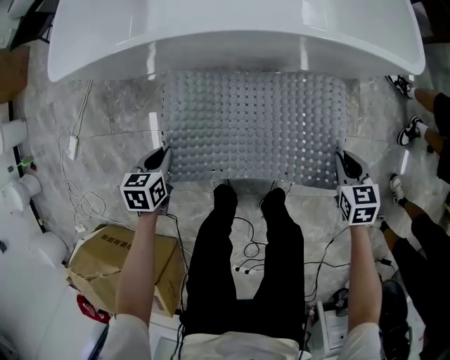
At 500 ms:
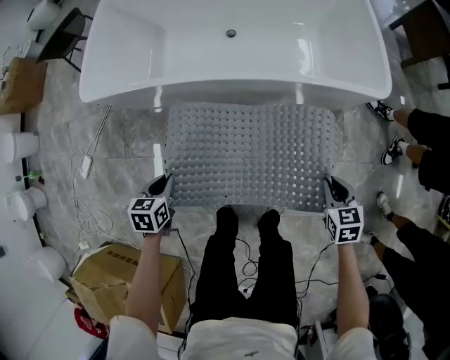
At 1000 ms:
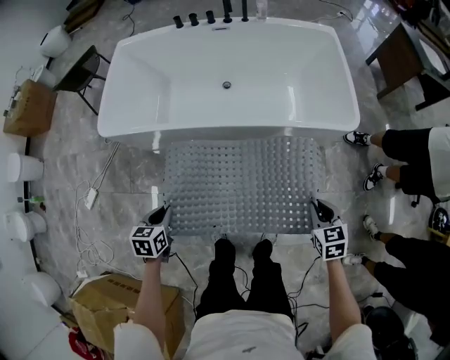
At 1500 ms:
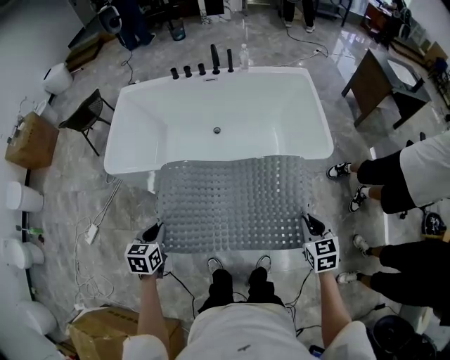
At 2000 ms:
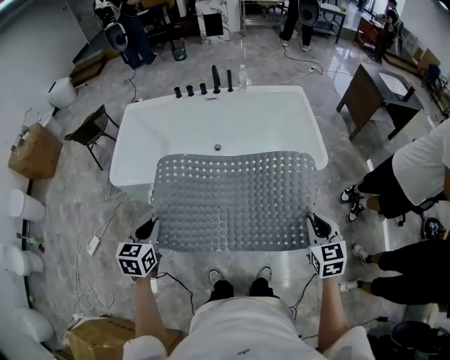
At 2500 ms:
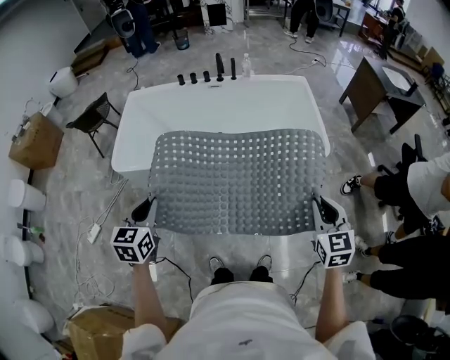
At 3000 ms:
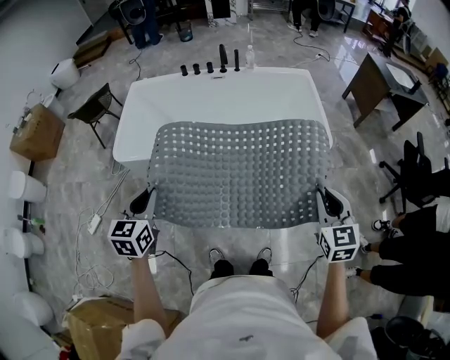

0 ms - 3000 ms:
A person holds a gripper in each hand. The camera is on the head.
0 ms - 1500 ms: The two grippers go roughly 35 cm upward.
1500 ms - 3000 ms: Both grippers travel together upward, some 15 cm.

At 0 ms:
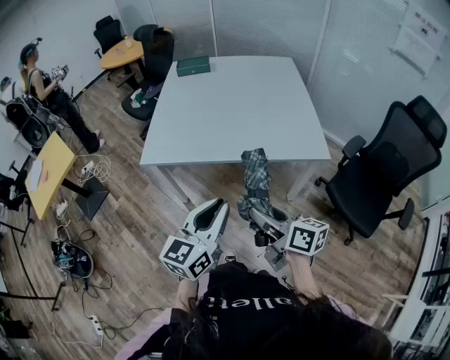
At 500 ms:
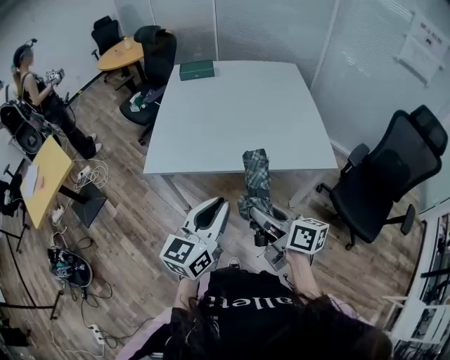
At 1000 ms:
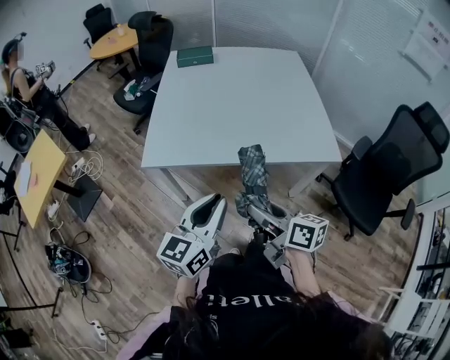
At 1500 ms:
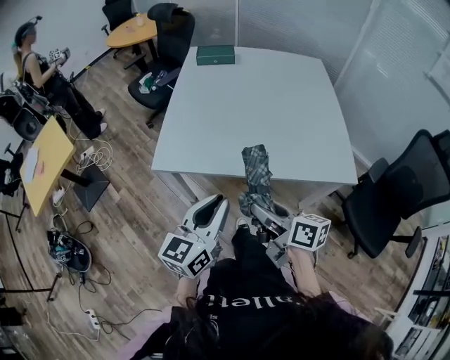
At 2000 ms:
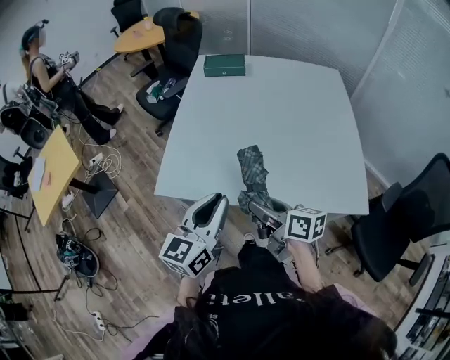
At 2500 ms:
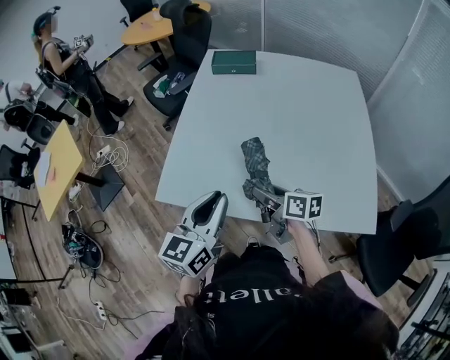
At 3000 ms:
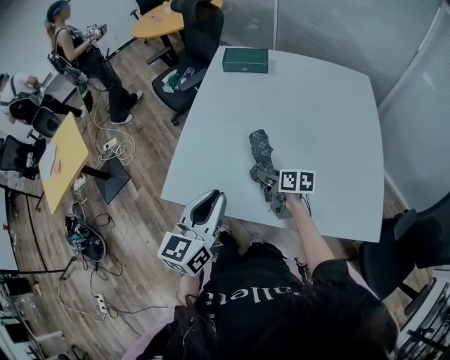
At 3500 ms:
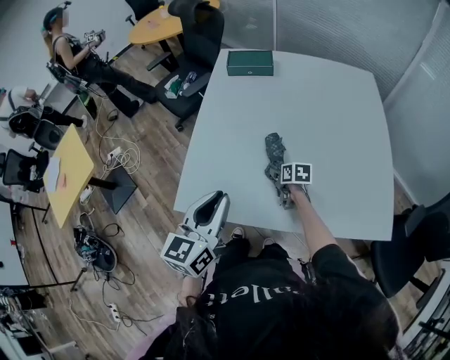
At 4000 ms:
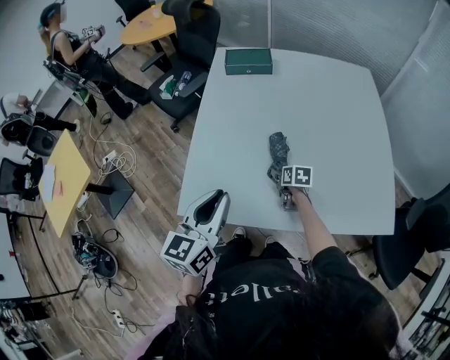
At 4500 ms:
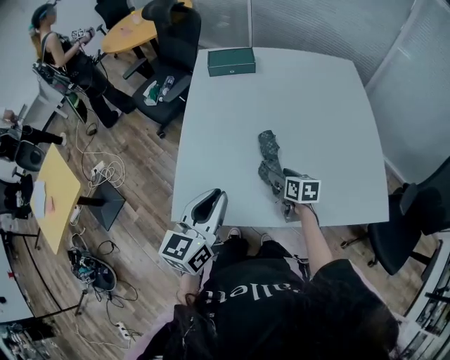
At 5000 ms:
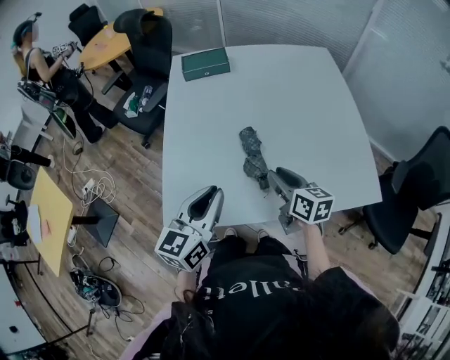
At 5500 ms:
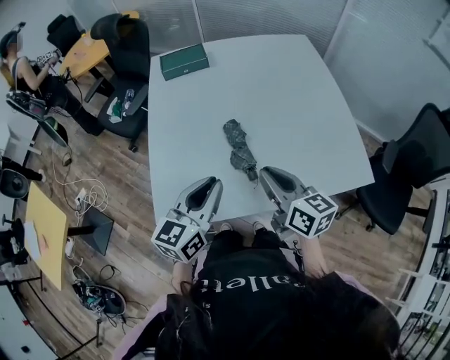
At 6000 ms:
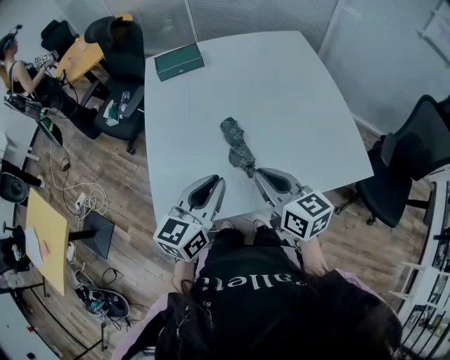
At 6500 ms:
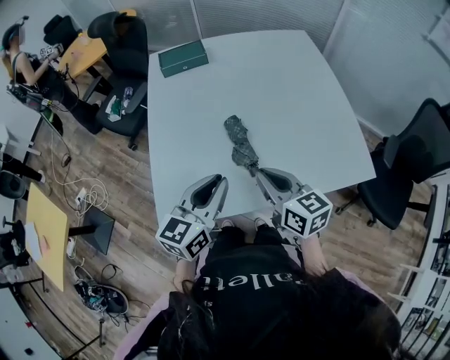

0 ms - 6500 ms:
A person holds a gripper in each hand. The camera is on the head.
0 ms - 2000 ms: Both grippers travel together forward, roughly 30 cm.
2000 ms - 4500 ms: The left gripper shifts approximately 15 cm forward and to the left, while the right gripper is displaced forward and downward by approximately 25 cm, and swivels some 30 degrees.
4500 ms - 6500 ms: The left gripper moves to the right, roughly 5 cm; the right gripper goes roughly 20 cm upward and backward, changes its angle by some 20 degrees, and closes its fingers.

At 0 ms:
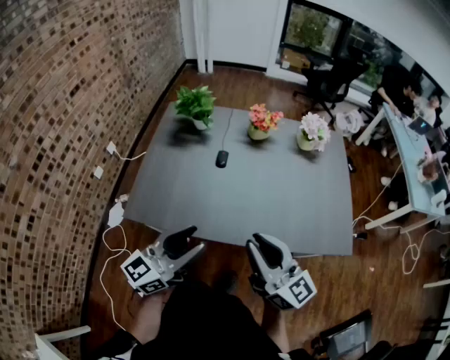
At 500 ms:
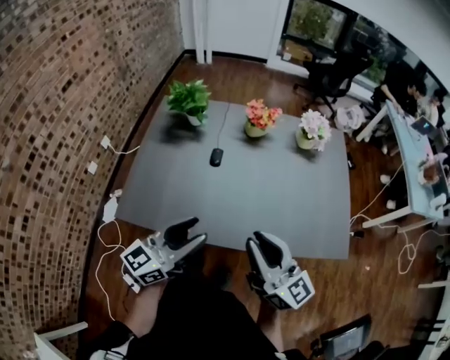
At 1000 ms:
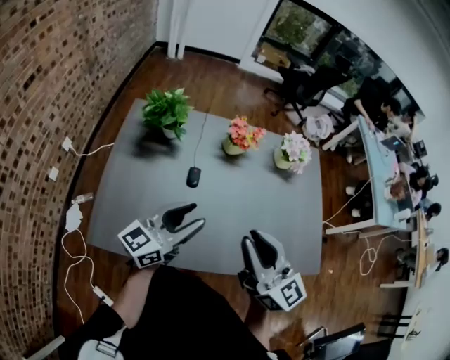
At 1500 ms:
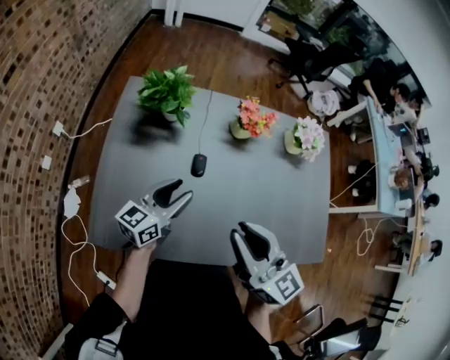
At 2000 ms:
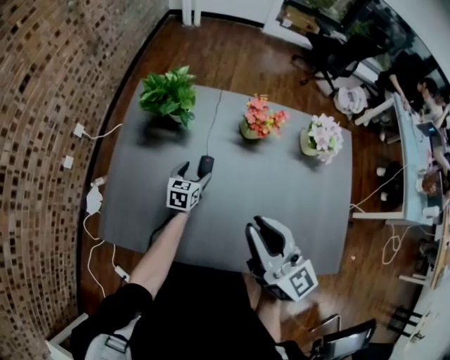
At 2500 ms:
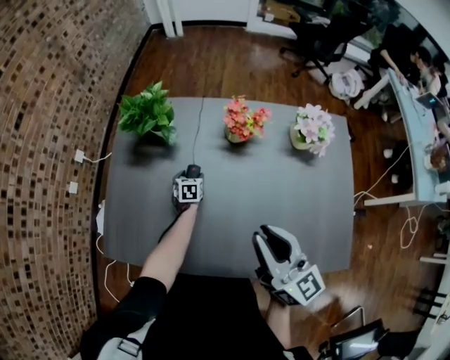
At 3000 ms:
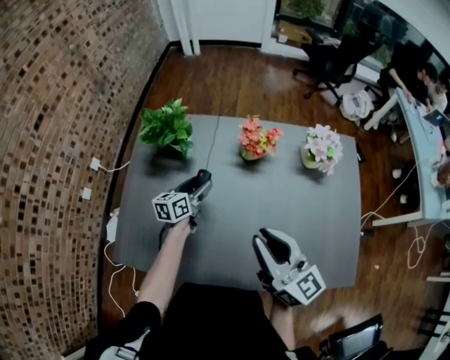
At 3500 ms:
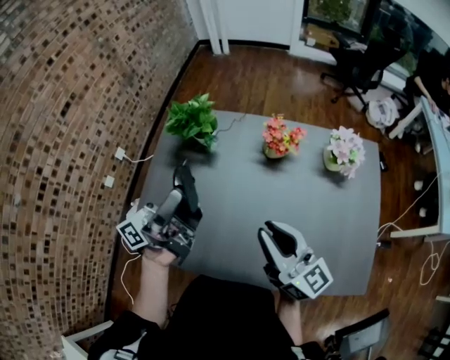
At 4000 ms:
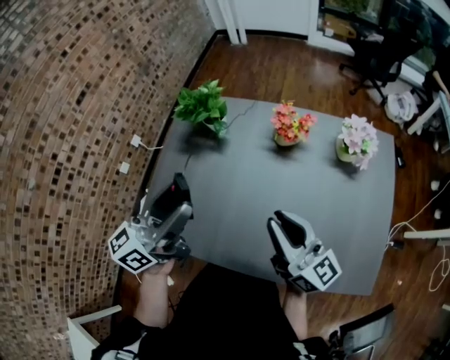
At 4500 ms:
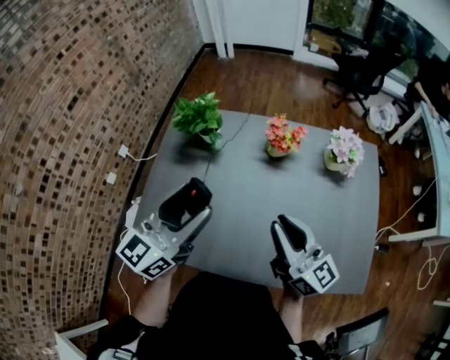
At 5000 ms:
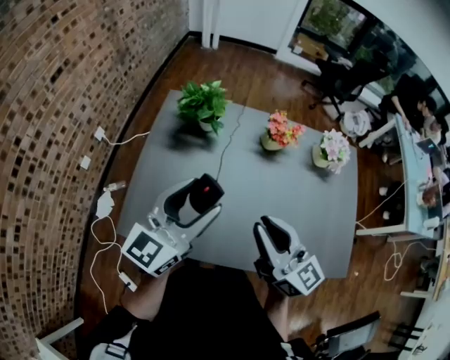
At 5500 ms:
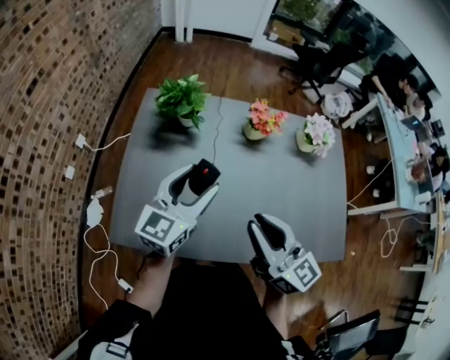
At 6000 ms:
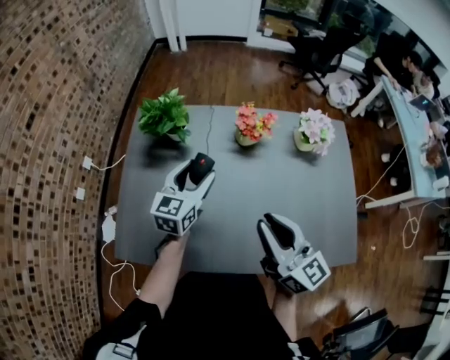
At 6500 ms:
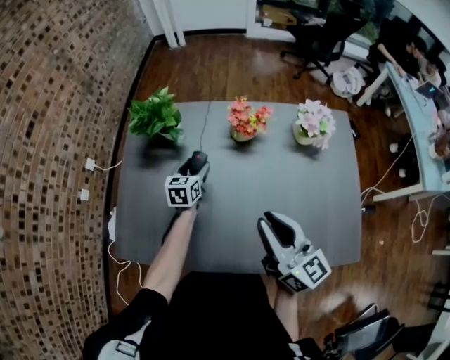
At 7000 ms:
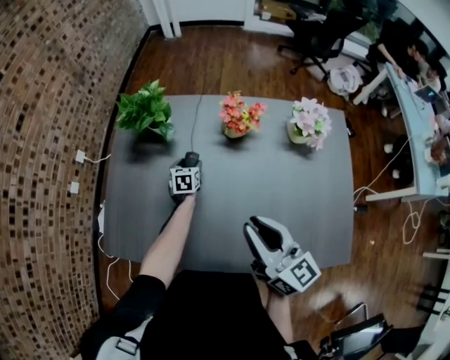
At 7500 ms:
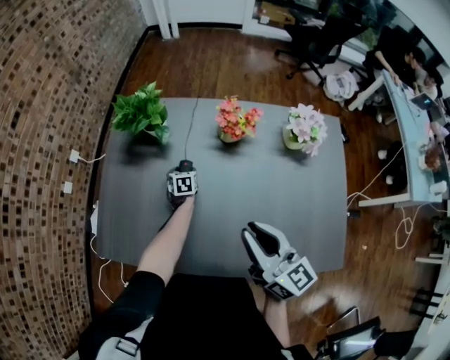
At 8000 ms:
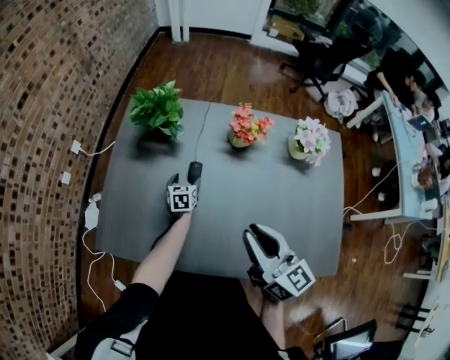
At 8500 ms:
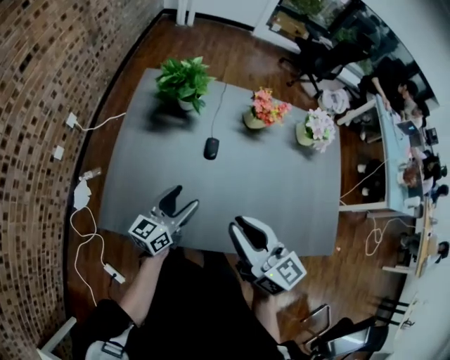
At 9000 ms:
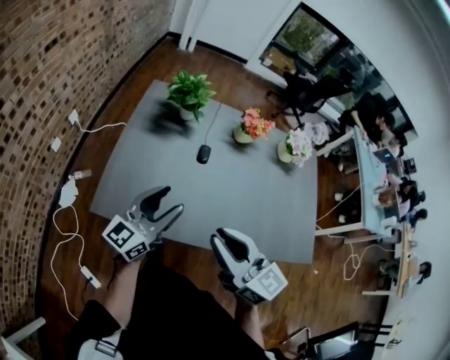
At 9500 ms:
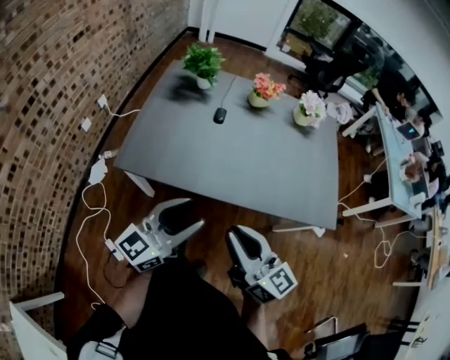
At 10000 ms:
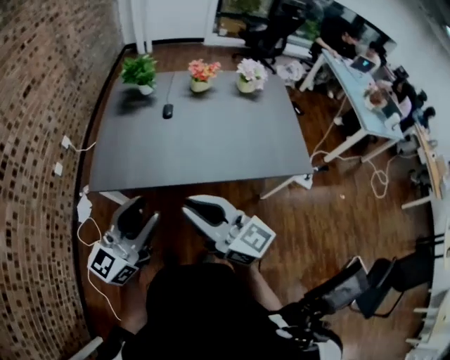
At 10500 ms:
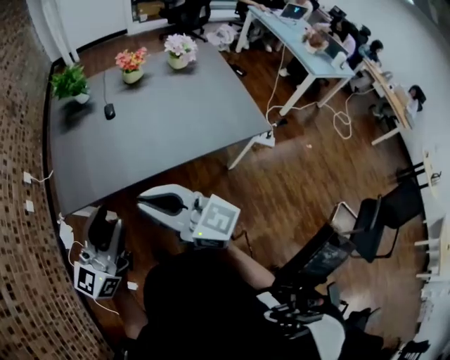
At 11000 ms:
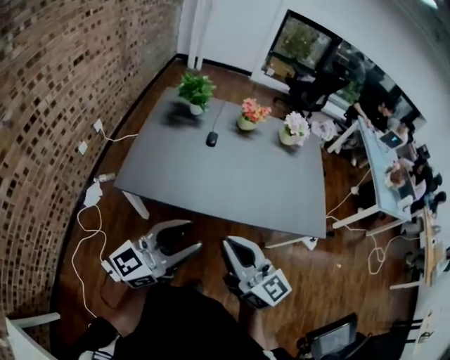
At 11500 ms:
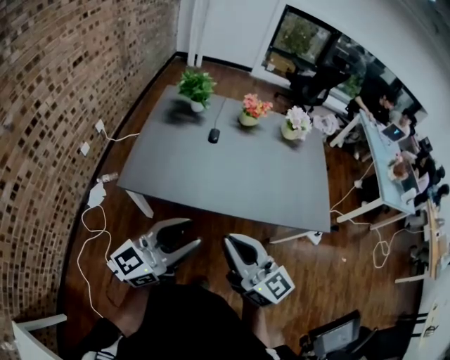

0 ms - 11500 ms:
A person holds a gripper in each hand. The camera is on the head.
0 ms - 2000 ms: The left gripper goes roughly 60 cm forward and downward, angles its fingers downward, by about 40 degrees, and opens its fingers. Meanwhile the right gripper goes about 30 cm forward.
2000 ms - 4000 ms: The left gripper travels upward and backward by about 40 cm, and tips its fingers upward by some 40 degrees, while the right gripper heads to the right, covering about 5 cm.
4000 ms - 6000 ms: The left gripper is displaced downward and forward by some 20 cm, and rotates about 30 degrees, while the right gripper moves approximately 15 cm to the left and comes back.
6000 ms - 7500 ms: The right gripper is displaced downward by some 5 cm. The left gripper is displaced downward by about 35 cm, and points its fingers about 40 degrees further downward.
7500 ms - 9500 ms: The pair of grippers is taken backward, roughly 50 cm. The left gripper heads upward, covering approximately 40 cm, and angles its fingers upward, by about 60 degrees.
9500 ms - 11500 ms: The right gripper moves about 5 cm. Meanwhile the left gripper goes some 5 cm upward.

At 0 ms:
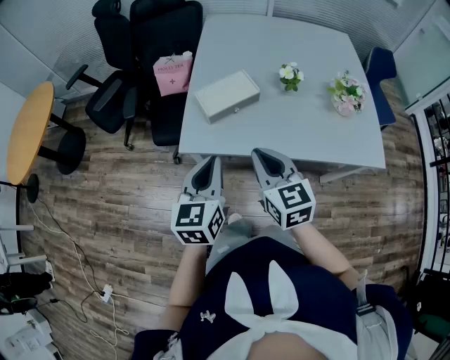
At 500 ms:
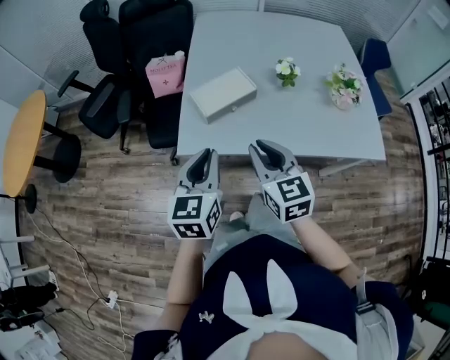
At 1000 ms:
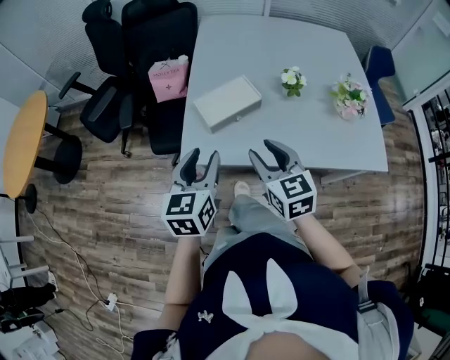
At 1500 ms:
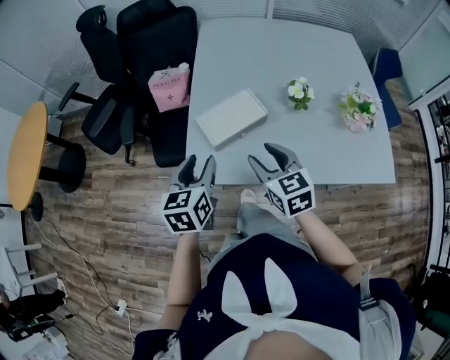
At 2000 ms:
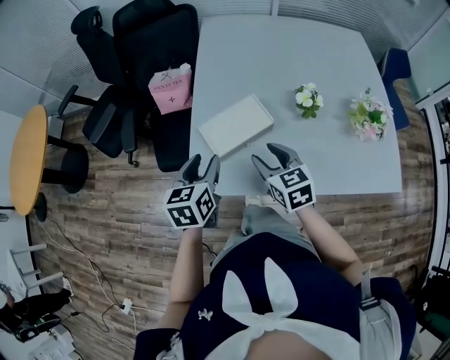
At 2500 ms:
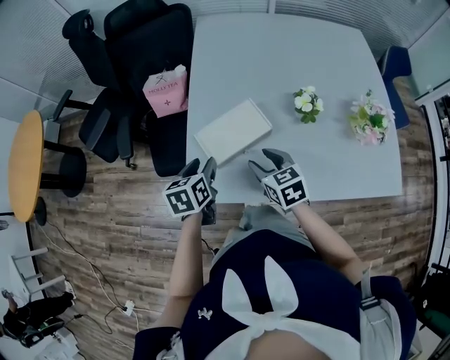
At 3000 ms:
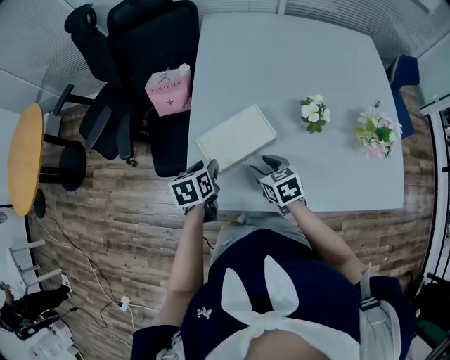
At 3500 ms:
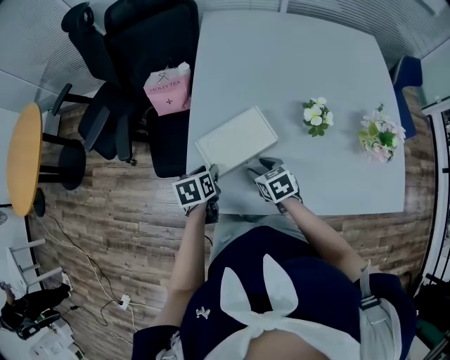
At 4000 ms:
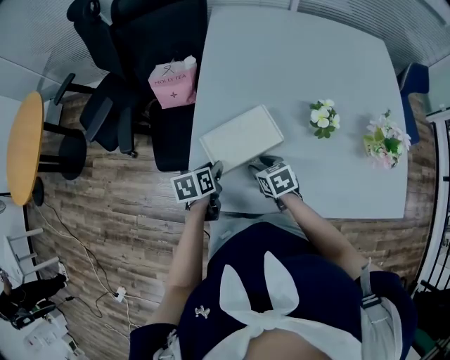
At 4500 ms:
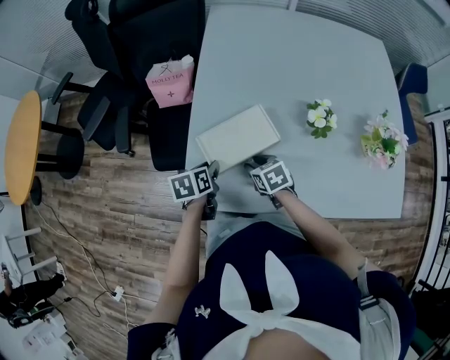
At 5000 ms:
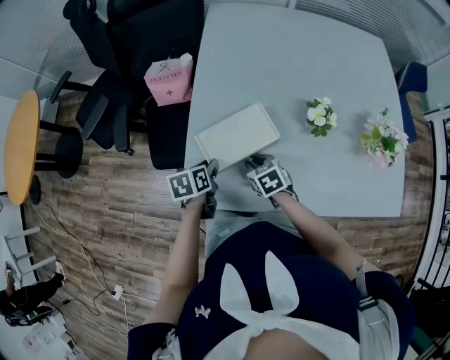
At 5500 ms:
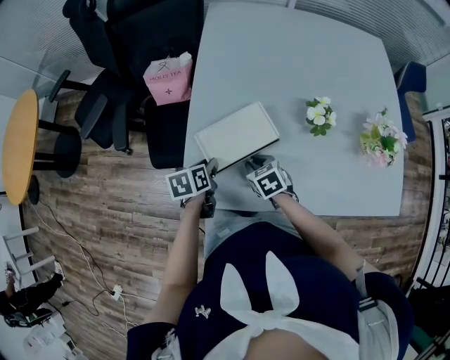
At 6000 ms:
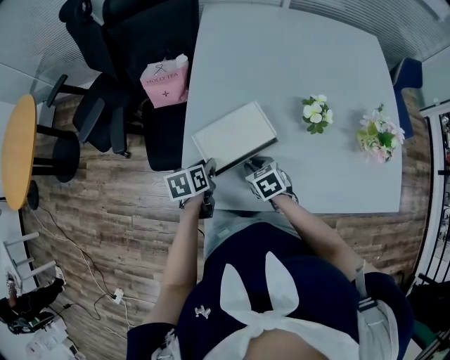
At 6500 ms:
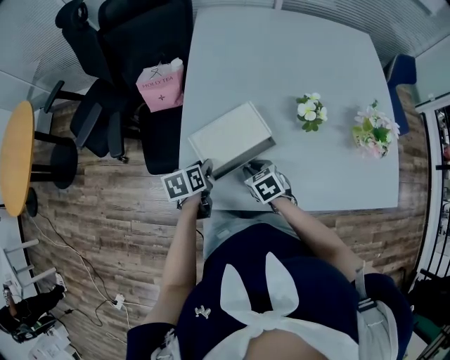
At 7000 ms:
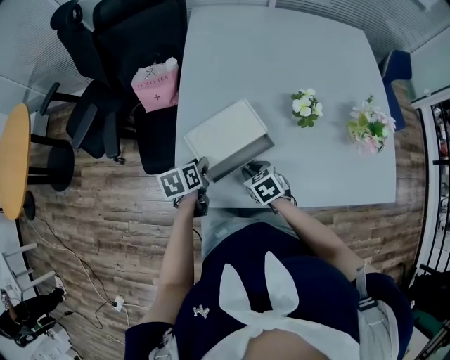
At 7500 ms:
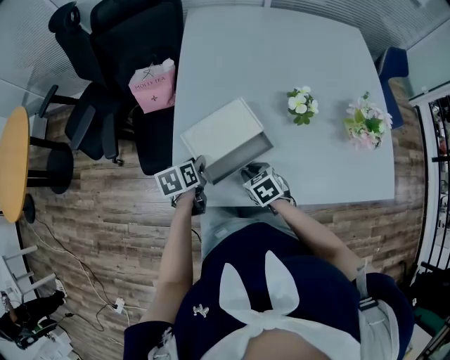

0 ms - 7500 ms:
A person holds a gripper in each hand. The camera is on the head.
0 ms - 2000 ms: The left gripper shifts roughly 20 cm forward, and opens its fingers; the right gripper moves forward and downward, some 20 cm, and opens.
2000 ms - 4000 ms: The grippers both shift downward by approximately 15 cm. The right gripper turns by about 20 degrees; the left gripper rotates some 30 degrees.
4000 ms - 5500 ms: The right gripper closes.
5500 ms - 7500 ms: The right gripper is displaced backward by some 5 cm.
